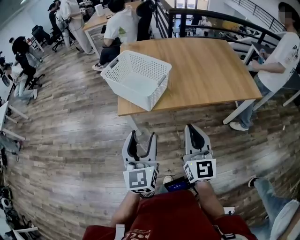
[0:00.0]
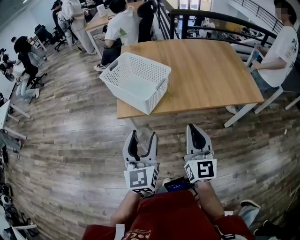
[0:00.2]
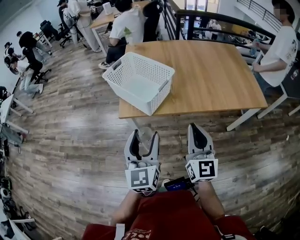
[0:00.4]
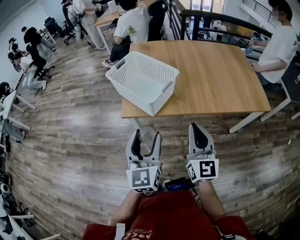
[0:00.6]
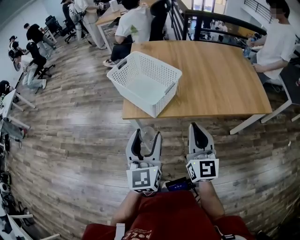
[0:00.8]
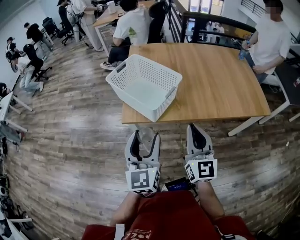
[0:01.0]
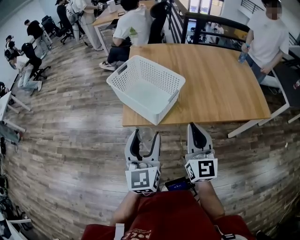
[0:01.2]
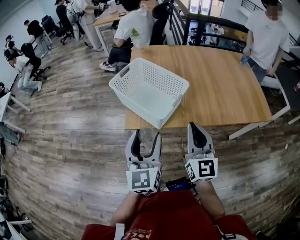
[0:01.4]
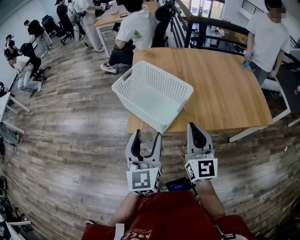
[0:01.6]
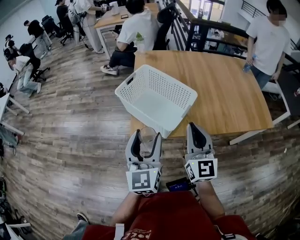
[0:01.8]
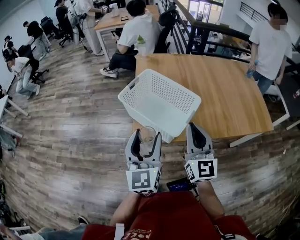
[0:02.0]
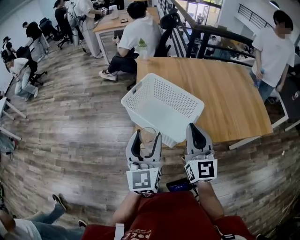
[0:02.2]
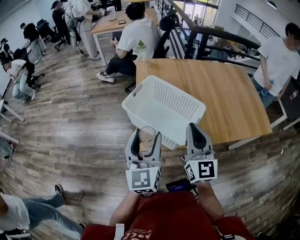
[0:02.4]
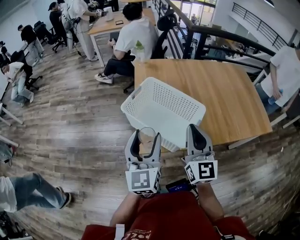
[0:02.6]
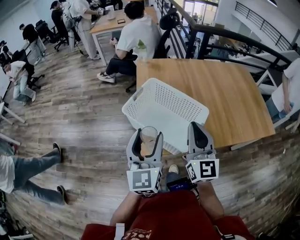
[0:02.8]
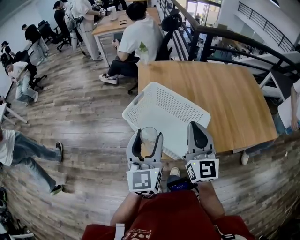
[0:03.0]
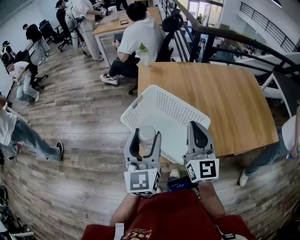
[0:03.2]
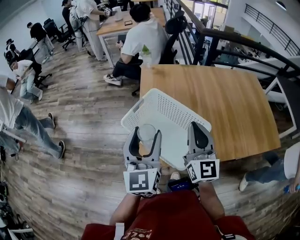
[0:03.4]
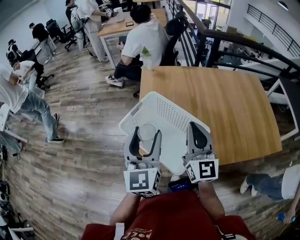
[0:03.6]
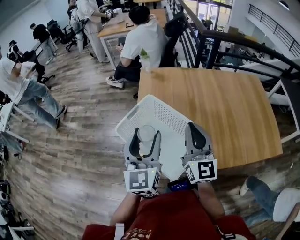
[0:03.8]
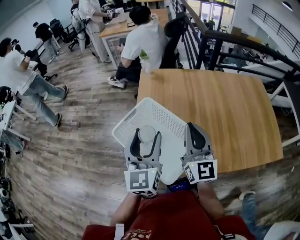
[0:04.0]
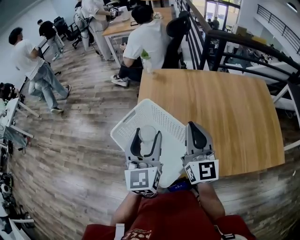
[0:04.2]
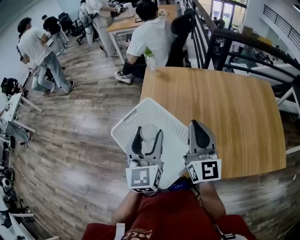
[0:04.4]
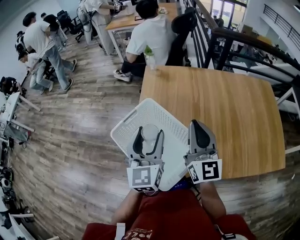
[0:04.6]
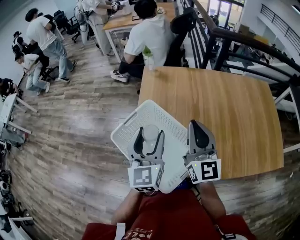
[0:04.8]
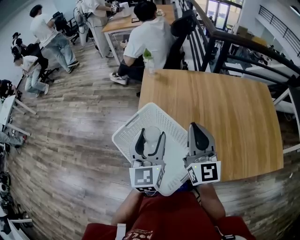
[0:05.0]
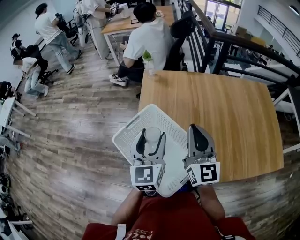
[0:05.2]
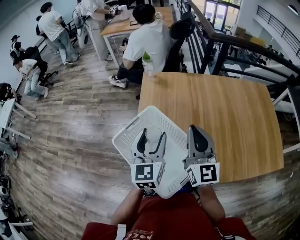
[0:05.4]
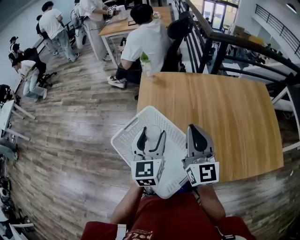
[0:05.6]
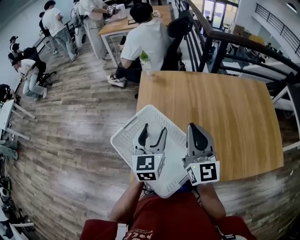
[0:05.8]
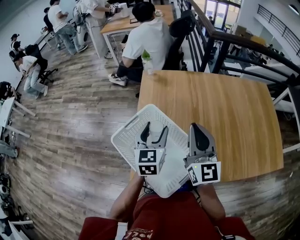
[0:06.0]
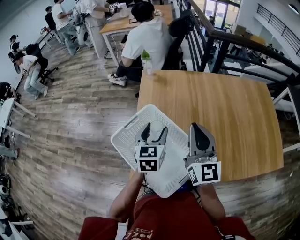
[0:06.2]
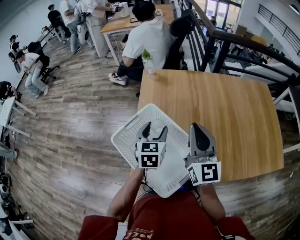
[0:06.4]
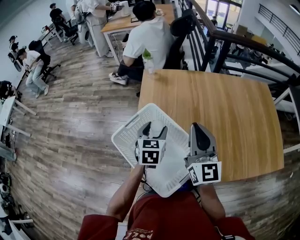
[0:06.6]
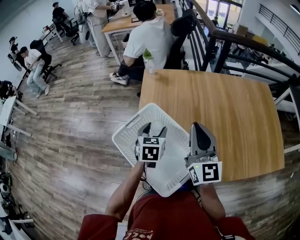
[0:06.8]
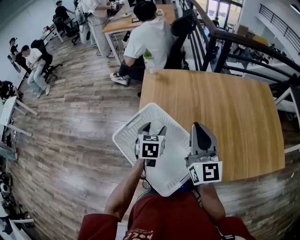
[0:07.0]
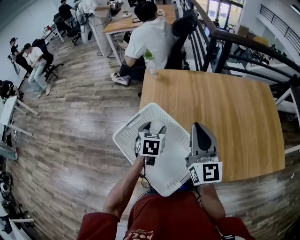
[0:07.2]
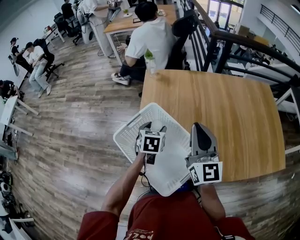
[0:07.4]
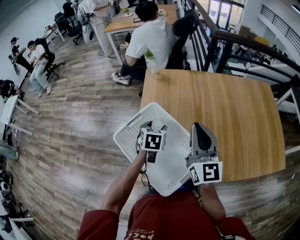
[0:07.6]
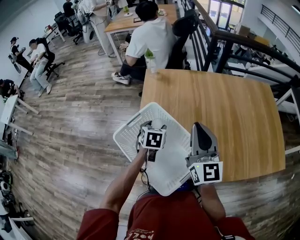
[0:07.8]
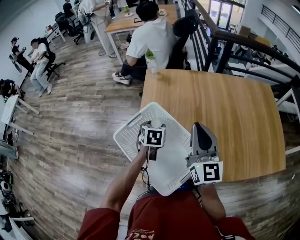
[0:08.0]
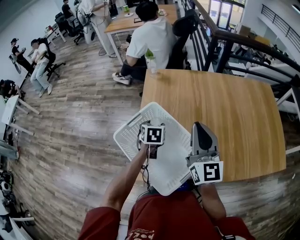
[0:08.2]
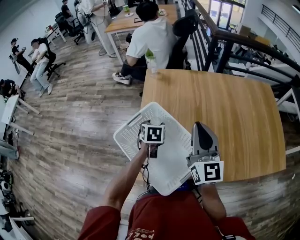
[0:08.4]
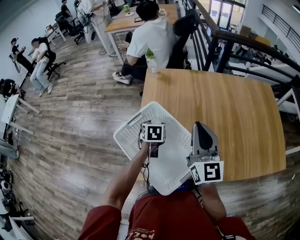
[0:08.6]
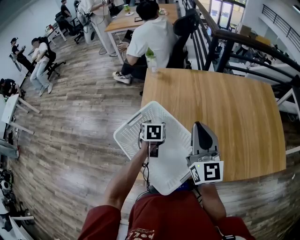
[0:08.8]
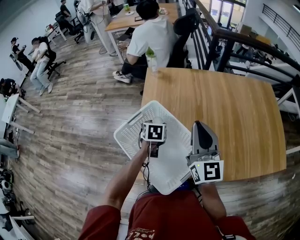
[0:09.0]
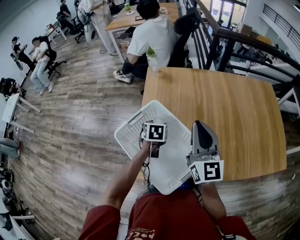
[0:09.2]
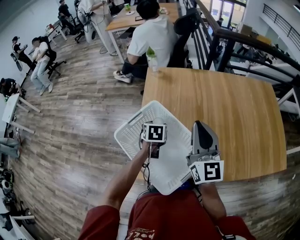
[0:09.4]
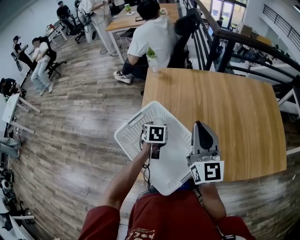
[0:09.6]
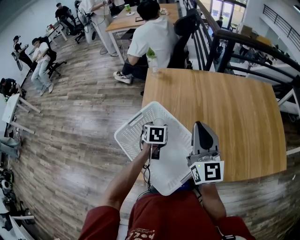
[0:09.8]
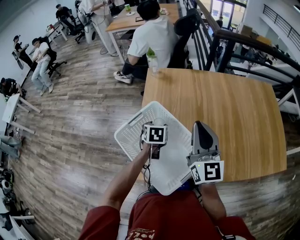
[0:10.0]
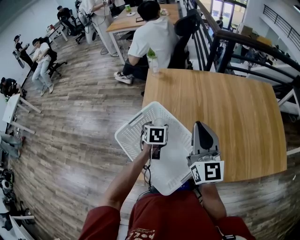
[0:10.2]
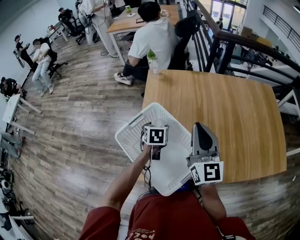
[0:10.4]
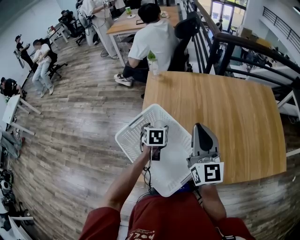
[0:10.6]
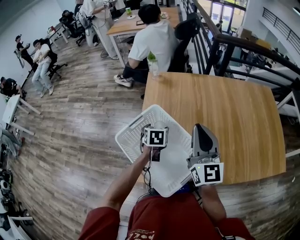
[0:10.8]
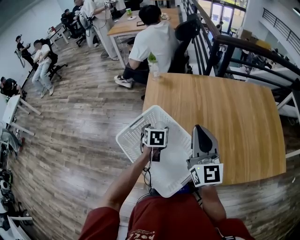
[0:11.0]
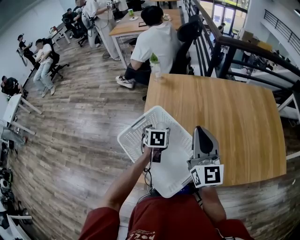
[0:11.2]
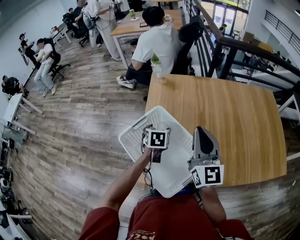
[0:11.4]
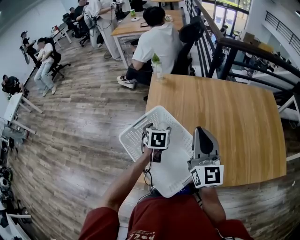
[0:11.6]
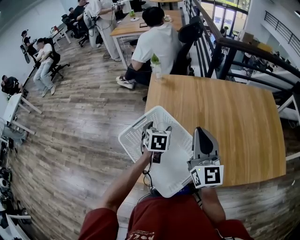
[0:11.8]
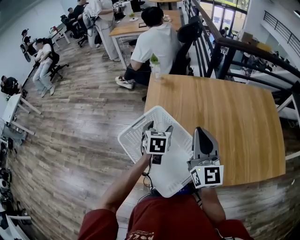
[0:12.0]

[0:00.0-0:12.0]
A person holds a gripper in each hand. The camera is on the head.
0:00.0 to 0:01.6: Both grippers move forward, approximately 15 cm.
0:01.6 to 0:03.0: Both grippers travel together forward and to the left, approximately 15 cm.
0:03.0 to 0:04.4: The grippers both shift forward and to the right by some 15 cm.
0:04.4 to 0:06.0: The left gripper shifts roughly 10 cm forward and downward.
0:06.0 to 0:07.6: The left gripper is displaced downward by some 10 cm, and changes its angle by about 30 degrees.
0:07.6 to 0:09.0: The grippers stay close to where they were, moving slightly.
0:09.0 to 0:10.4: Both grippers stay about where they are.
0:10.4 to 0:12.0: The left gripper is displaced upward by about 5 cm.

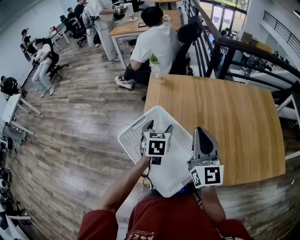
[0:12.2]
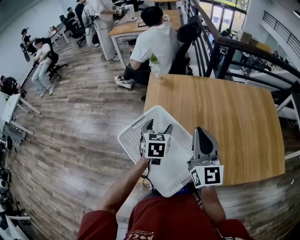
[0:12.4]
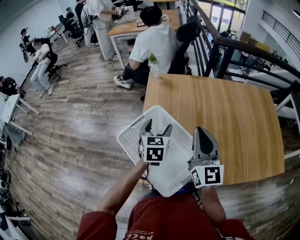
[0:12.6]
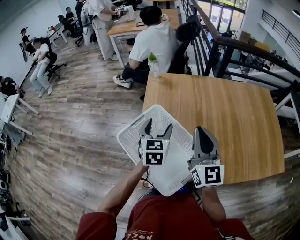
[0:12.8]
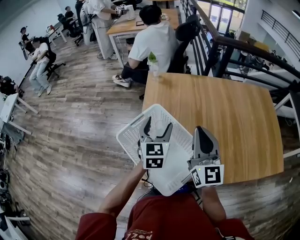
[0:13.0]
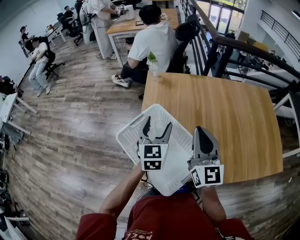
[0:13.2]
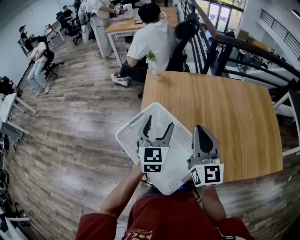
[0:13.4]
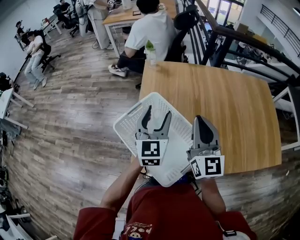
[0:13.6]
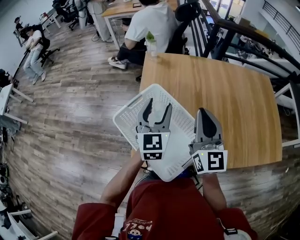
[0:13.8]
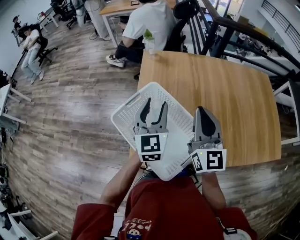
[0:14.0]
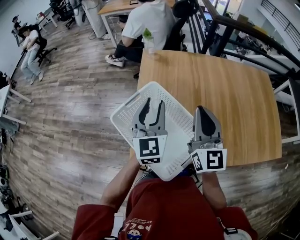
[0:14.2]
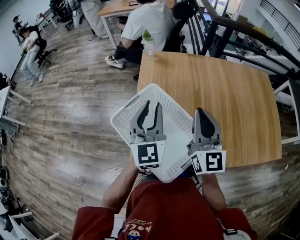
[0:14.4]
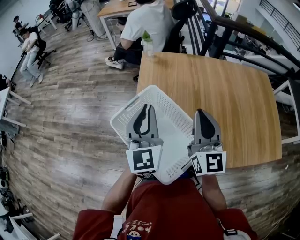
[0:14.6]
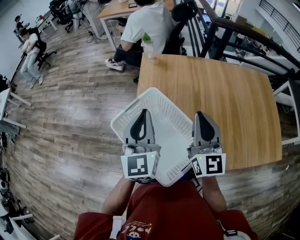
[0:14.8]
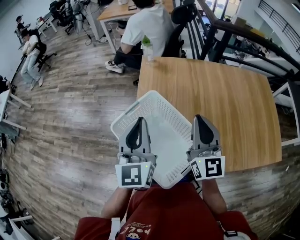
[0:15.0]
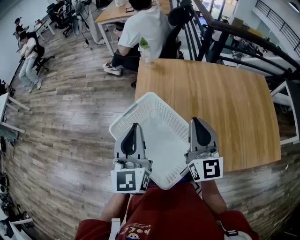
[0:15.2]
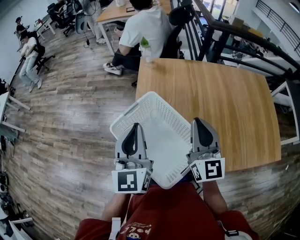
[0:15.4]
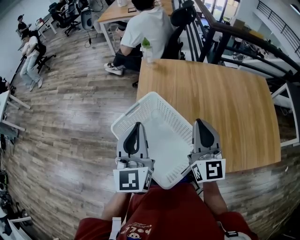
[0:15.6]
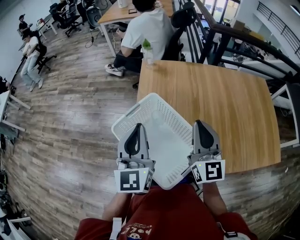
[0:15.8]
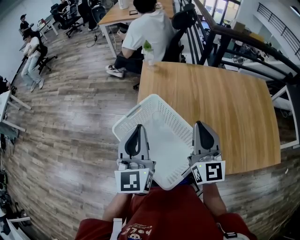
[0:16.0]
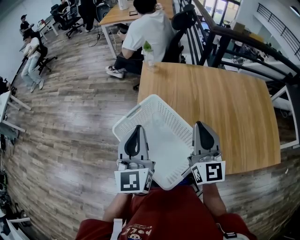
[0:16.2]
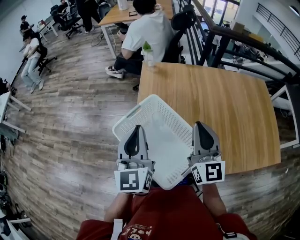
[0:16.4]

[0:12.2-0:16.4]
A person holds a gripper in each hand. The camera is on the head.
0:12.2 to 0:13.6: The left gripper moves upward, some 10 cm, and angles its fingers upward, by about 30 degrees.
0:13.6 to 0:15.0: The left gripper travels upward, to the left and backward by some 10 cm, and closes.
0:15.0 to 0:16.4: The grippers make only small movements.

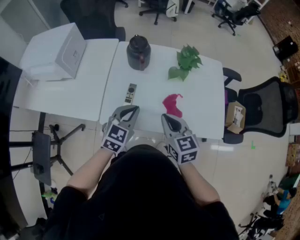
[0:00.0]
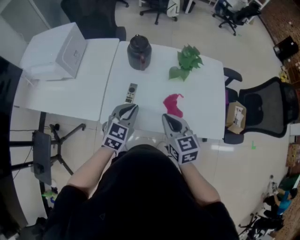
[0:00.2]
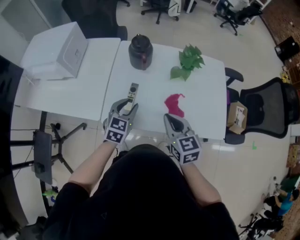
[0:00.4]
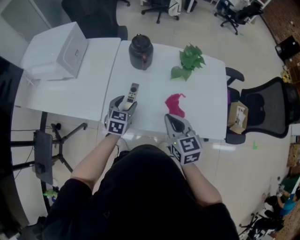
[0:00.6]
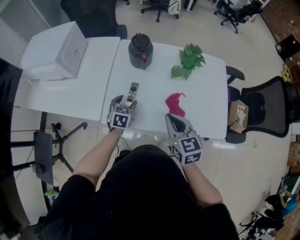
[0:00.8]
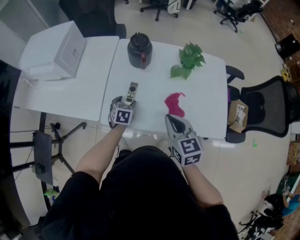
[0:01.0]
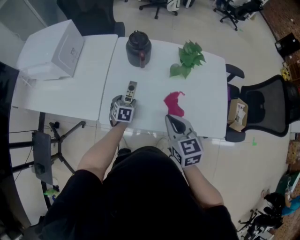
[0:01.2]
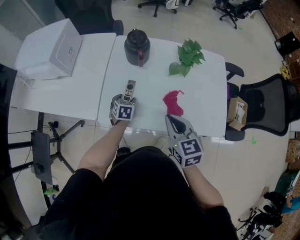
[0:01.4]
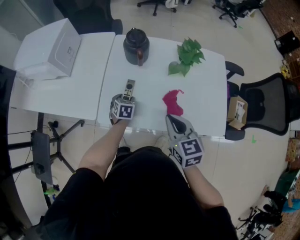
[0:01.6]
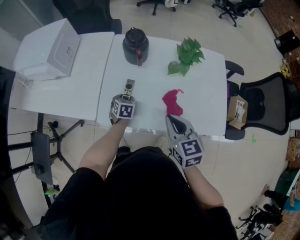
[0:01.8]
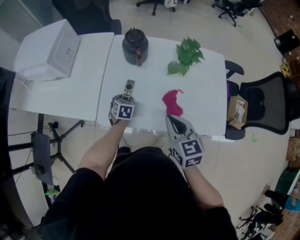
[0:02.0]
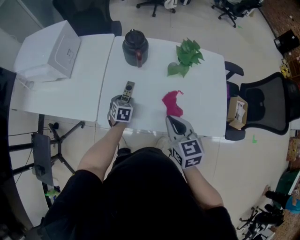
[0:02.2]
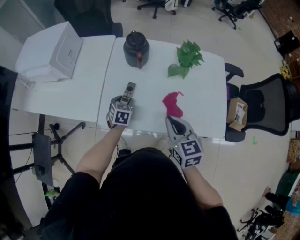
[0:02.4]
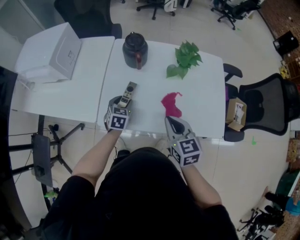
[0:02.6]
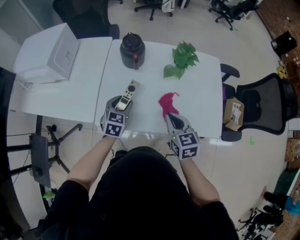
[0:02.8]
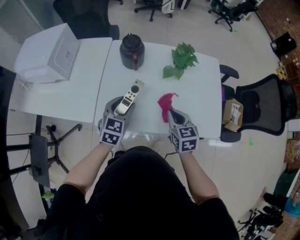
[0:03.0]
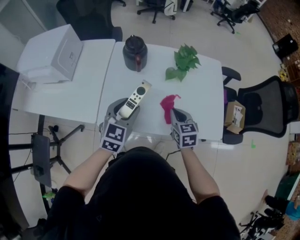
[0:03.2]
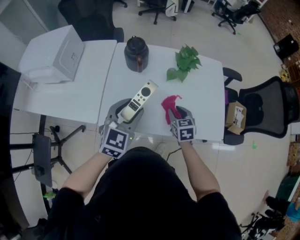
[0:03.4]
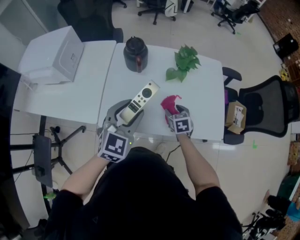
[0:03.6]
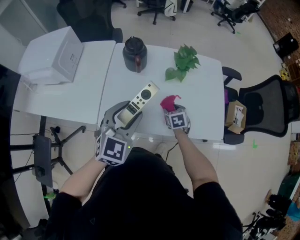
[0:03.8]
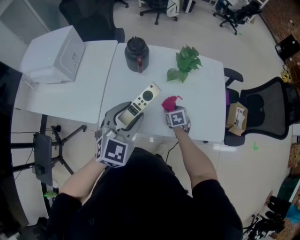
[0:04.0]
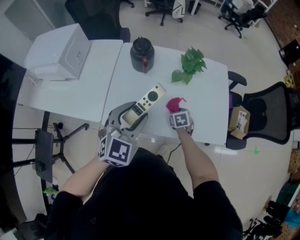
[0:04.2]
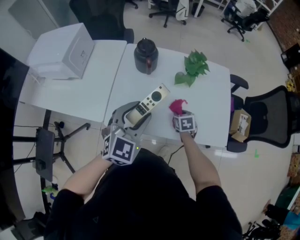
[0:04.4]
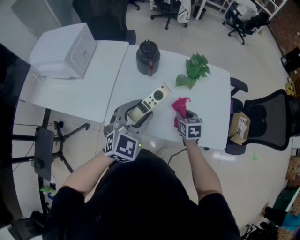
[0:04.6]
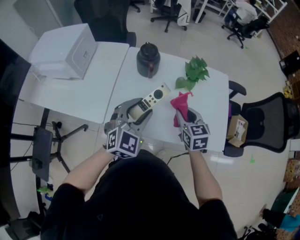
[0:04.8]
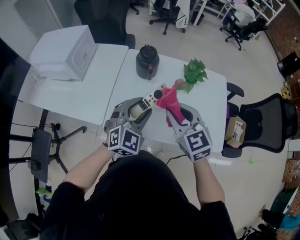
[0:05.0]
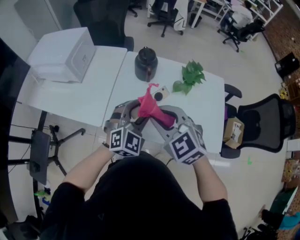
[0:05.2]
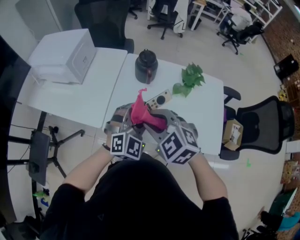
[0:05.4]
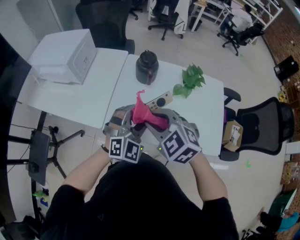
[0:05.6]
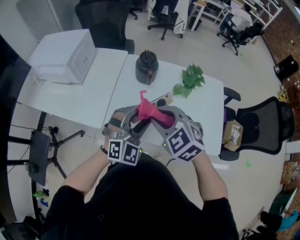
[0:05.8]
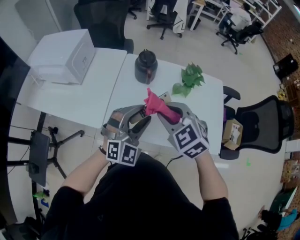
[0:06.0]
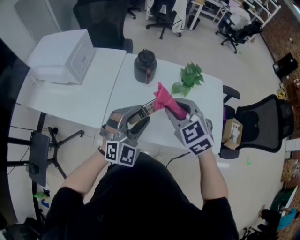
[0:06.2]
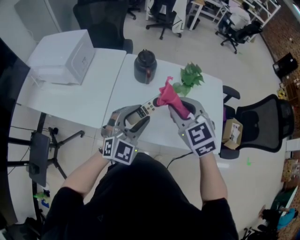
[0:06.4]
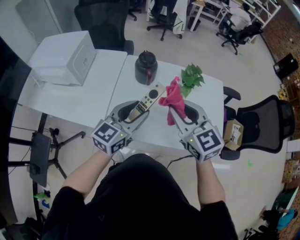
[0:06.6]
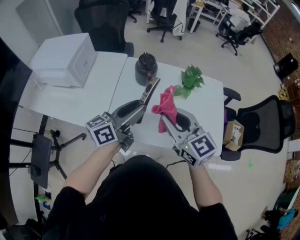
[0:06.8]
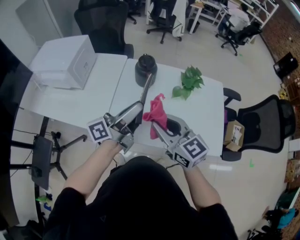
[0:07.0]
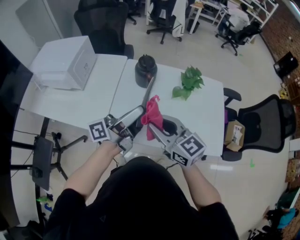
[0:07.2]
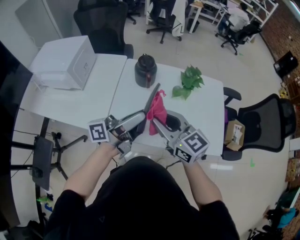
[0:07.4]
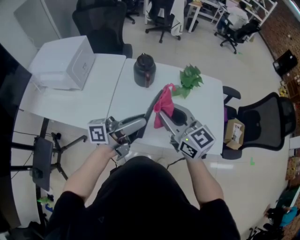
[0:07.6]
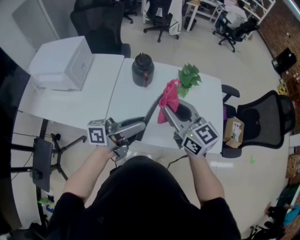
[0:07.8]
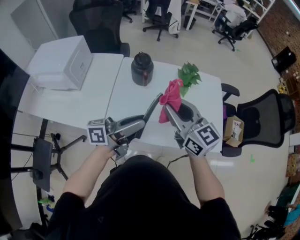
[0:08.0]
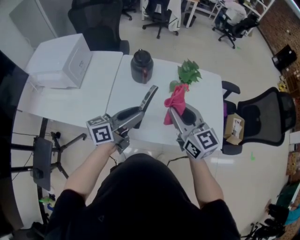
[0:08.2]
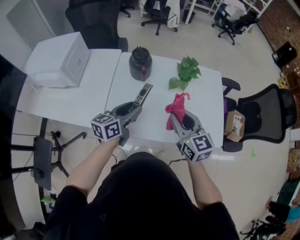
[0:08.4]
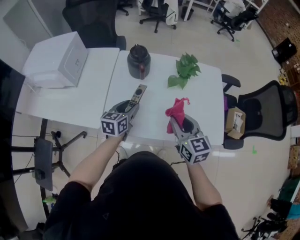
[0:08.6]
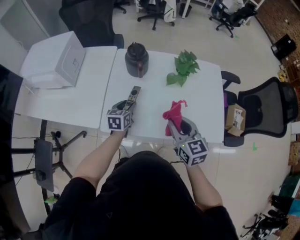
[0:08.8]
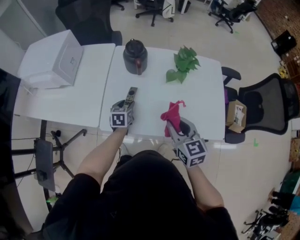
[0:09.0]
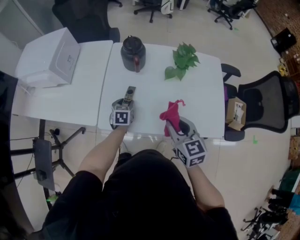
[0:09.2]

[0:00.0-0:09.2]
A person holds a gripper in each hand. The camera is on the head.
0:00.0 to 0:01.6: The left gripper heads downward and forward, covering approximately 25 cm, turns by some 40 degrees, and opens.
0:01.6 to 0:03.0: The left gripper moves upward, approximately 20 cm, and swivels about 30 degrees, while the right gripper is displaced downward and to the right by some 10 cm.
0:03.0 to 0:04.6: The right gripper travels downward and forward by roughly 10 cm, and opens its fingers. The left gripper goes approximately 10 cm upward, and swivels about 20 degrees.
0:04.6 to 0:06.2: The right gripper travels upward and to the left by roughly 25 cm, and turns by roughly 40 degrees; the left gripper swivels some 20 degrees.
0:06.2 to 0:07.6: The left gripper moves upward, some 5 cm, and twists roughly 100 degrees counterclockwise, seen from behind; the right gripper rotates about 40 degrees.
0:07.6 to 0:09.2: The right gripper travels downward and to the right by roughly 15 cm, and swivels some 30 degrees. Meanwhile the left gripper travels downward by roughly 30 cm, and tips its fingers downward by approximately 70 degrees.
